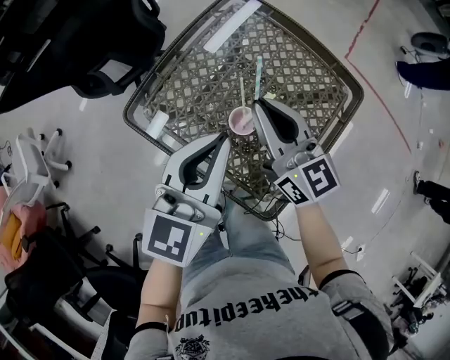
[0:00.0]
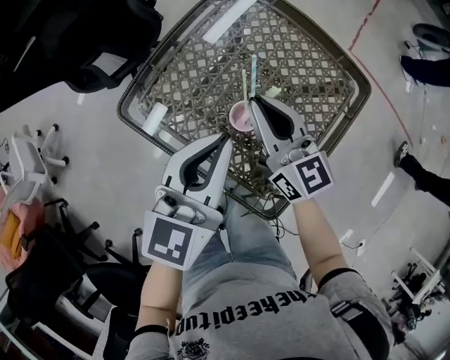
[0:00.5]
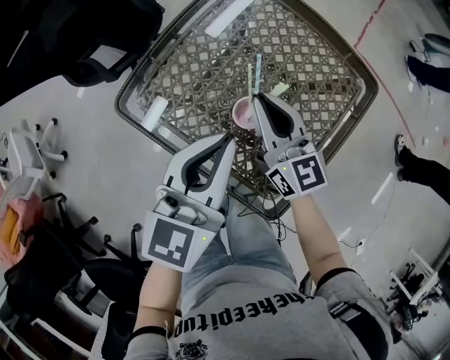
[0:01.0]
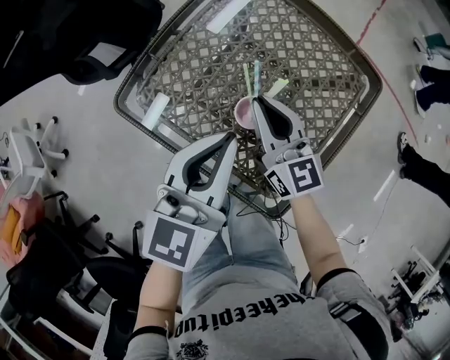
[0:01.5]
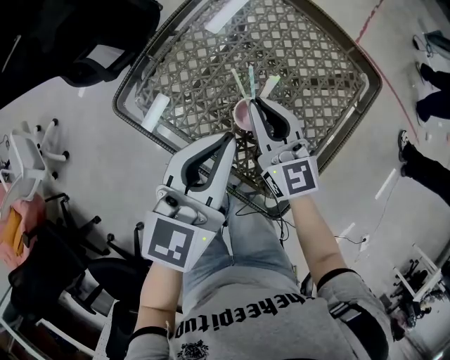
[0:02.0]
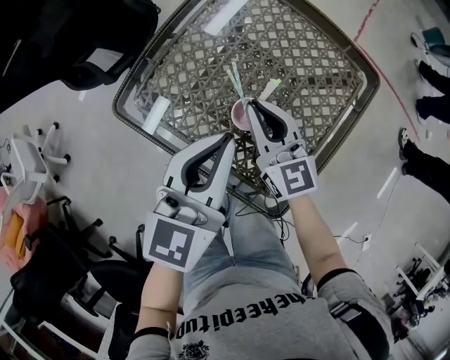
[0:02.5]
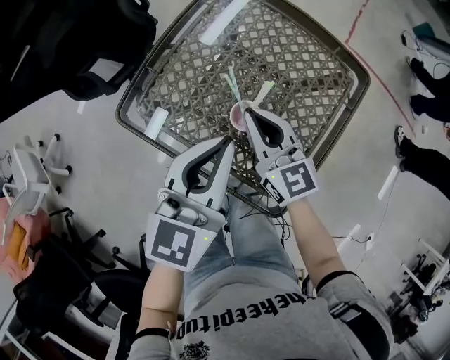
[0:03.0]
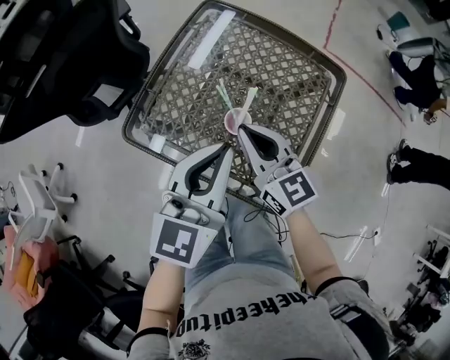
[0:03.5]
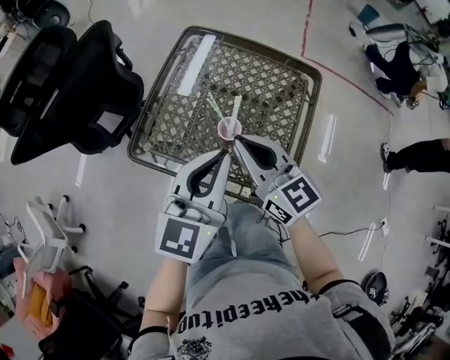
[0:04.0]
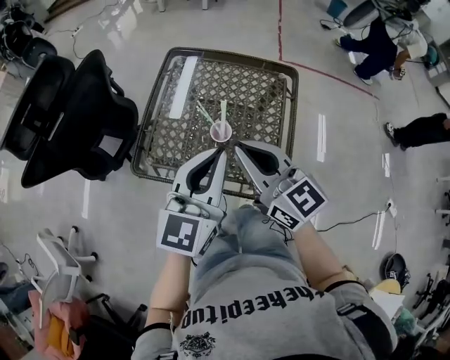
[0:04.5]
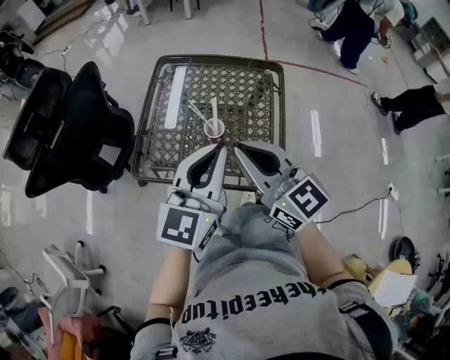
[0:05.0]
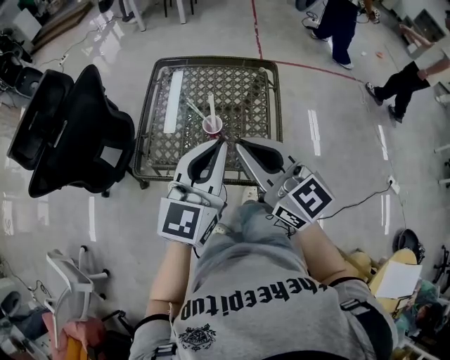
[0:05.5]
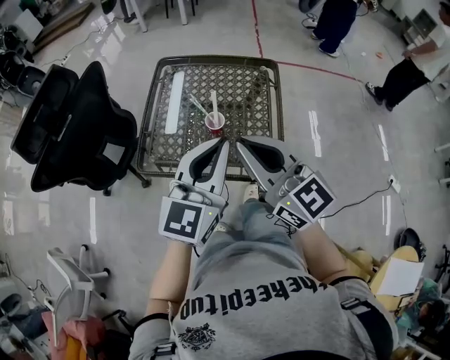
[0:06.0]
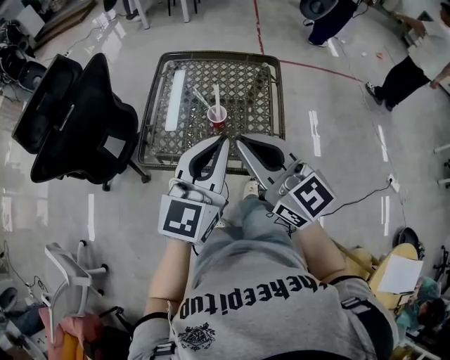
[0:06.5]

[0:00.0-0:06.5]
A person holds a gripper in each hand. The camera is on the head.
0:00.0 to 0:02.0: The left gripper is displaced downward by some 5 cm, while the right gripper is displaced downward by roughly 10 cm.
0:02.0 to 0:04.5: The left gripper is displaced upward and to the right by some 15 cm, and swivels roughly 20 degrees. Meanwhile the right gripper heads upward, covering roughly 20 cm.
0:04.5 to 0:06.5: The grippers both shift backward and upward by roughly 10 cm.

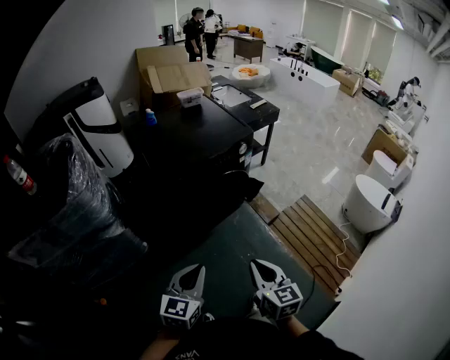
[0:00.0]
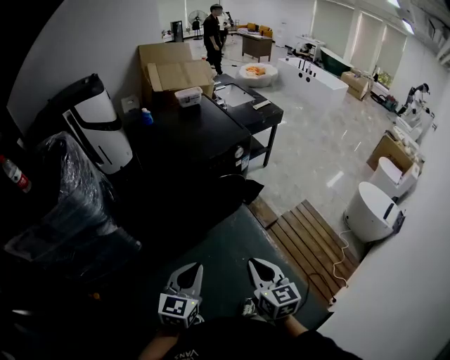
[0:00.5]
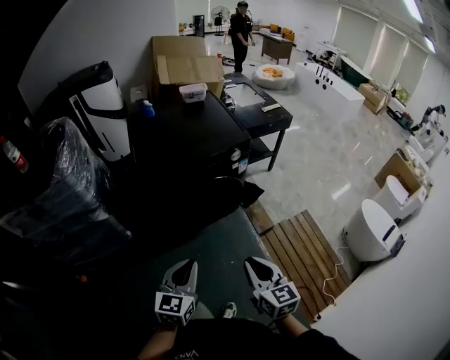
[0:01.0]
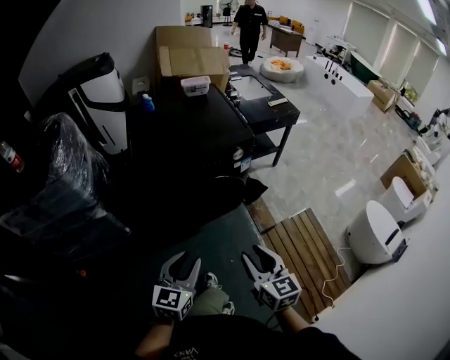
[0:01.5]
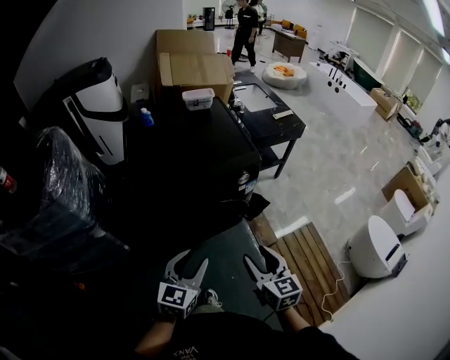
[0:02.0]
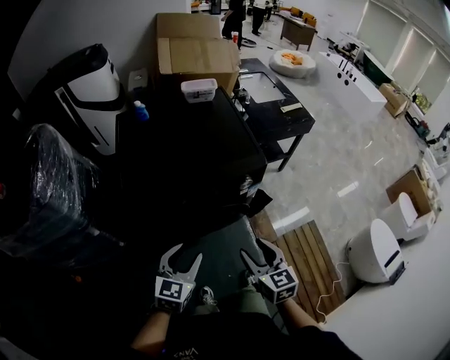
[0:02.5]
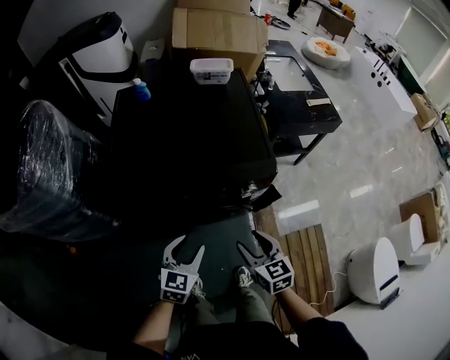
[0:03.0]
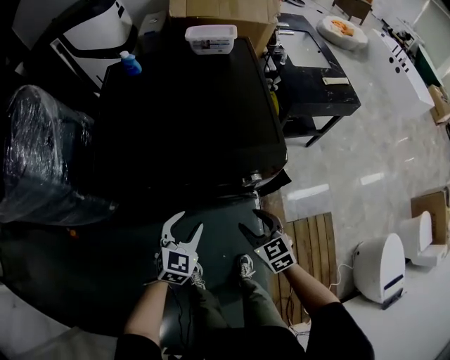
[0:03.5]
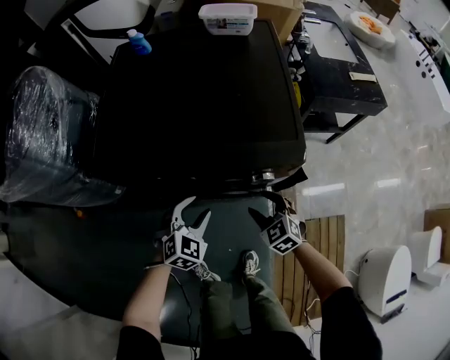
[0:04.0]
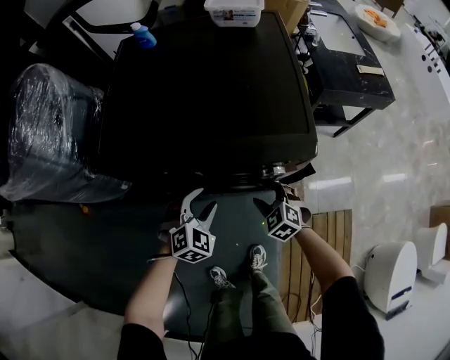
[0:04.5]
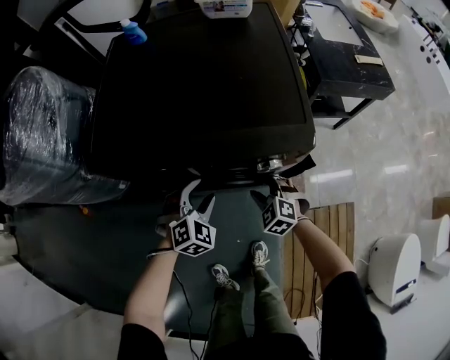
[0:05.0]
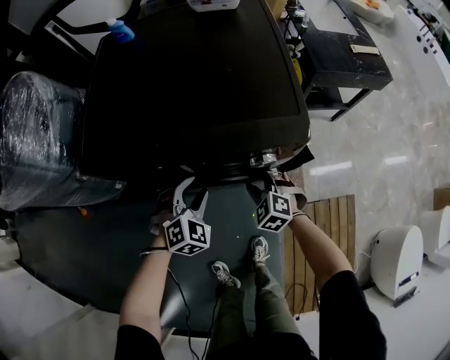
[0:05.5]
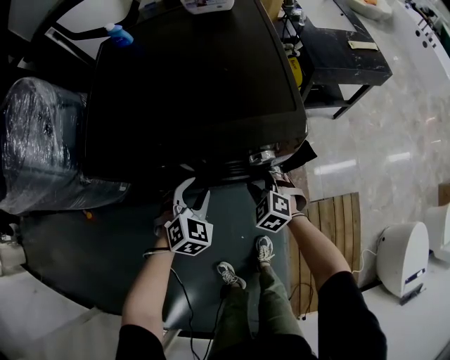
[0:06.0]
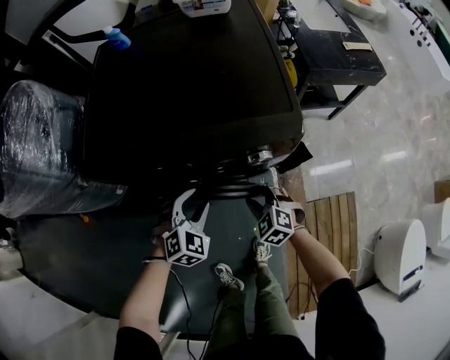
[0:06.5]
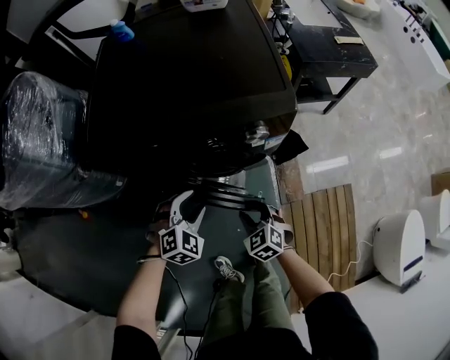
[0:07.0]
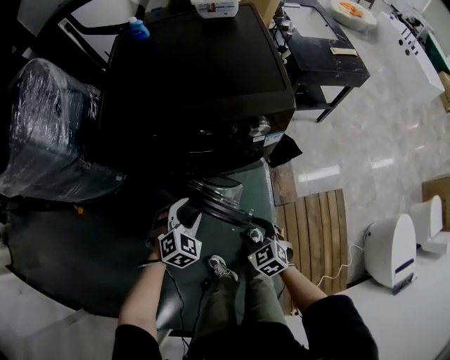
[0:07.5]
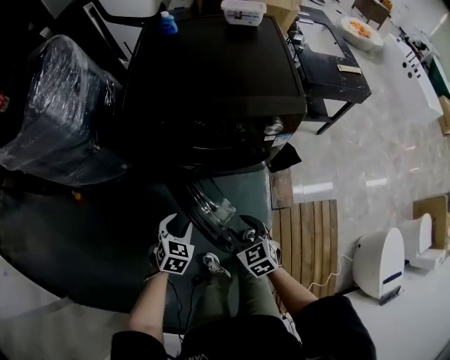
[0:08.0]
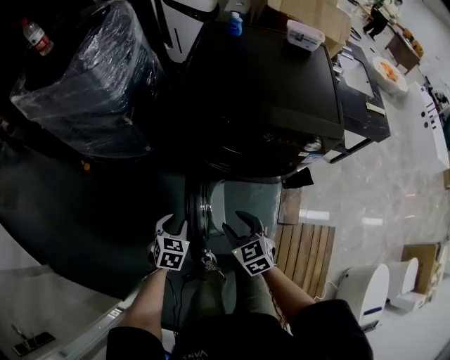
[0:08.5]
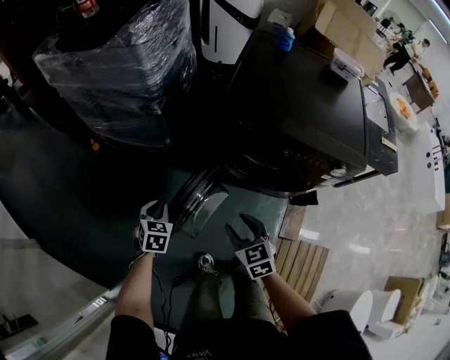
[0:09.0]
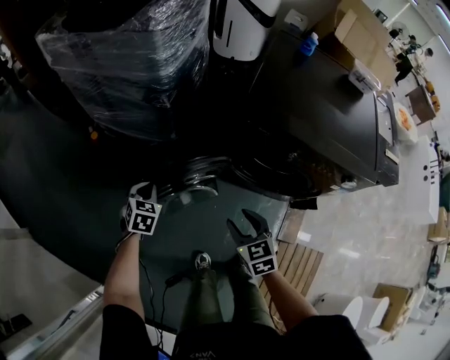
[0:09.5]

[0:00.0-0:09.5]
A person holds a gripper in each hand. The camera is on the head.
0:00.0 to 0:02.0: Both grippers move forward and to the right, approximately 30 cm. The left gripper opens; the right gripper opens up.
0:02.0 to 0:04.0: The right gripper ends up approximately 40 cm from where it was, and turns by about 60 degrees. The left gripper changes place by roughly 35 cm, and swivels roughly 40 degrees.
0:04.0 to 0:05.5: The right gripper is displaced downward by about 5 cm, and closes.
0:05.5 to 0:07.5: The left gripper shifts roughly 15 cm backward and to the left. The right gripper is displaced backward by some 25 cm, and swivels roughly 30 degrees.
0:07.5 to 0:09.5: The right gripper is displaced to the left by approximately 30 cm; the left gripper moves to the left, about 40 cm, rotates around the line of its fingers by approximately 50 degrees, counterclockwise from behind, and closes its fingers.

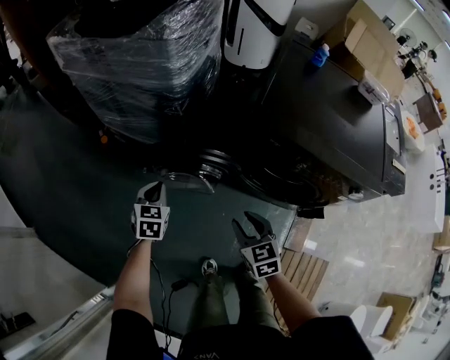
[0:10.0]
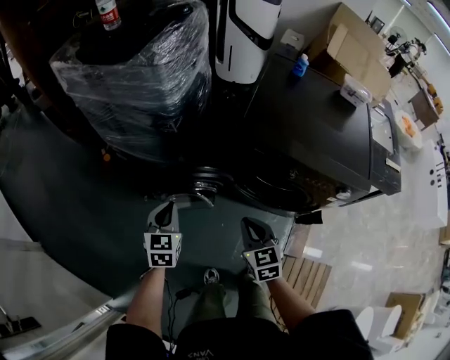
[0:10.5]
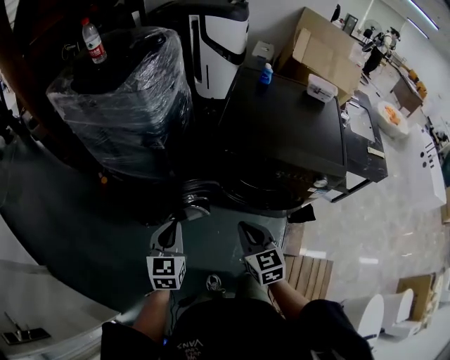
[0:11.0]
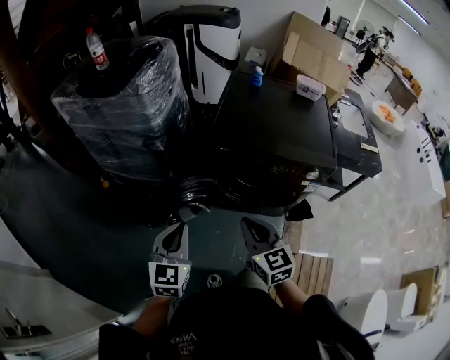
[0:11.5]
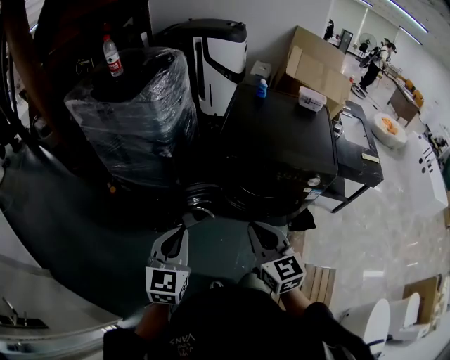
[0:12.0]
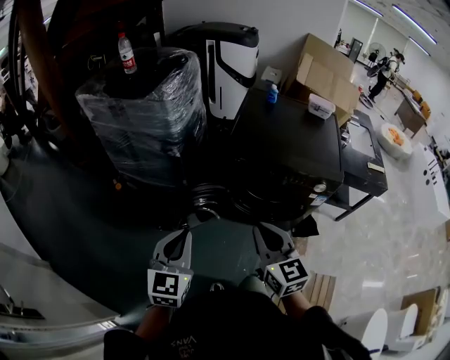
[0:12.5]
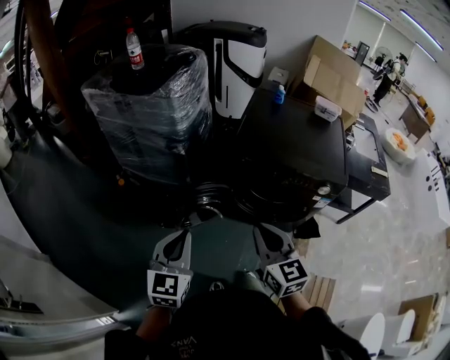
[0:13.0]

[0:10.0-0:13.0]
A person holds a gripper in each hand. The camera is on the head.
0:10.0 to 0:11.5: The left gripper heads upward, backward and to the right, covering approximately 35 cm, and swivels some 30 degrees; the right gripper goes roughly 25 cm upward and backward, rotates some 20 degrees, and closes up.
0:11.5 to 0:13.0: The left gripper shifts roughly 5 cm backward, while the right gripper heads upward, covering approximately 5 cm.

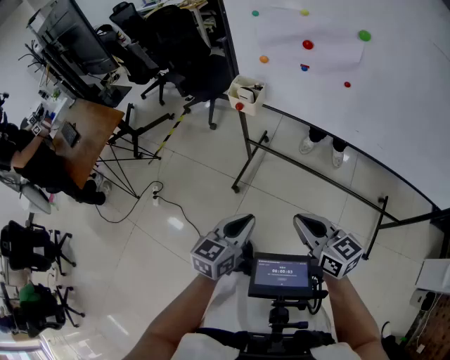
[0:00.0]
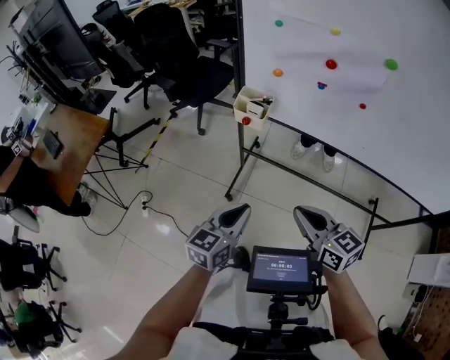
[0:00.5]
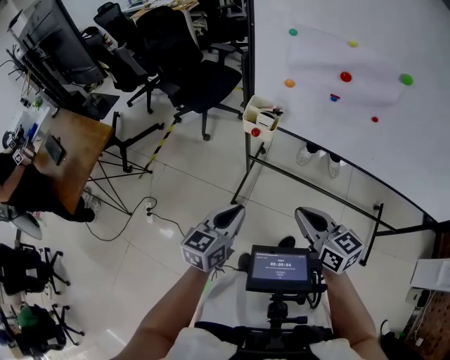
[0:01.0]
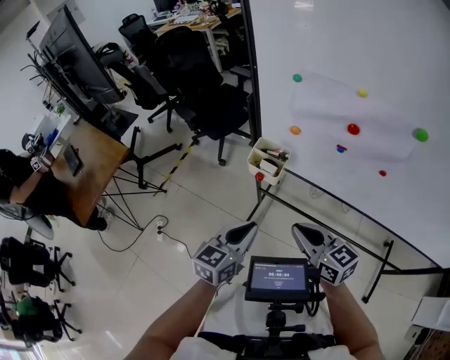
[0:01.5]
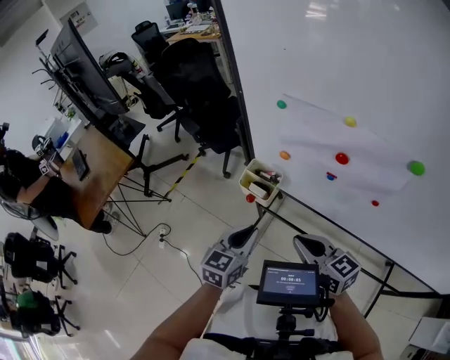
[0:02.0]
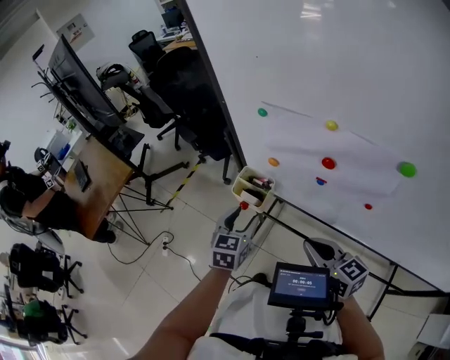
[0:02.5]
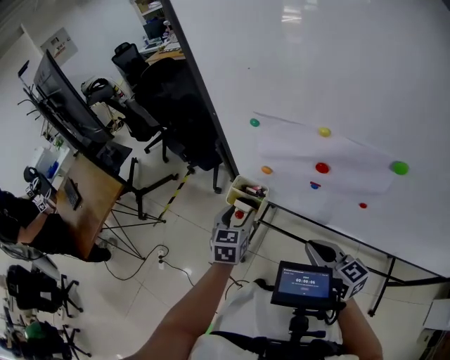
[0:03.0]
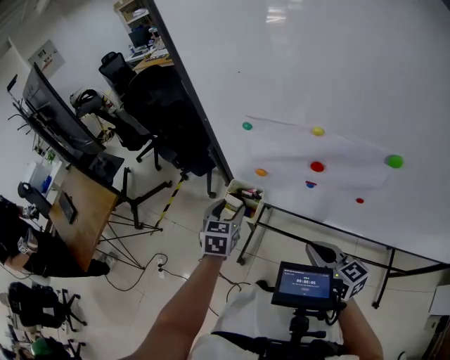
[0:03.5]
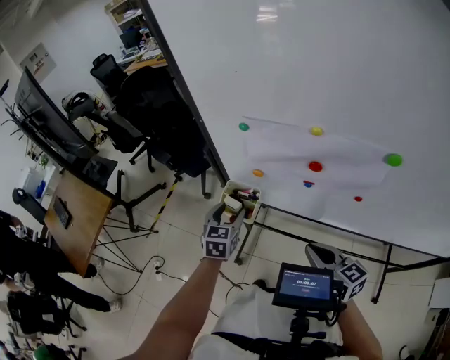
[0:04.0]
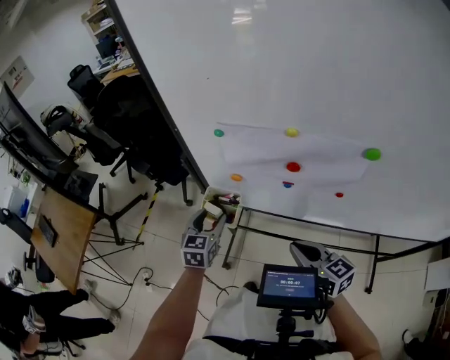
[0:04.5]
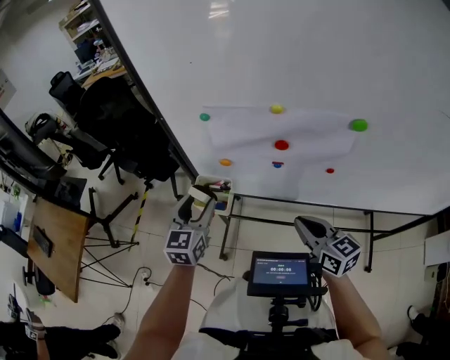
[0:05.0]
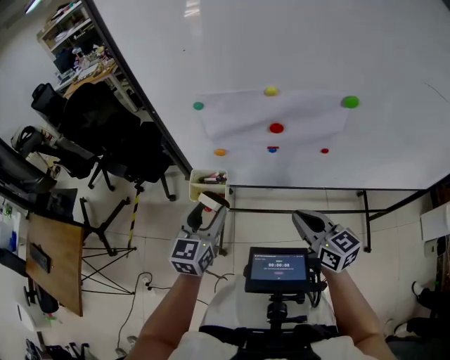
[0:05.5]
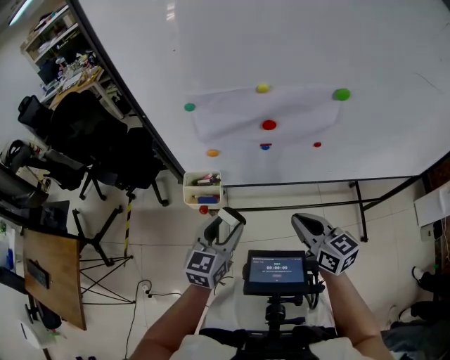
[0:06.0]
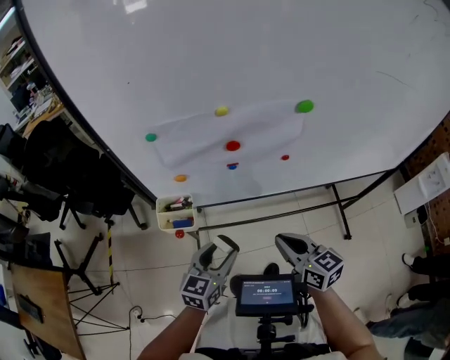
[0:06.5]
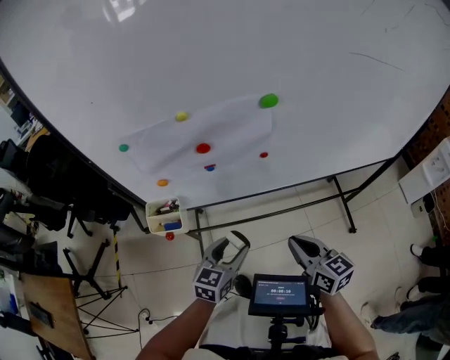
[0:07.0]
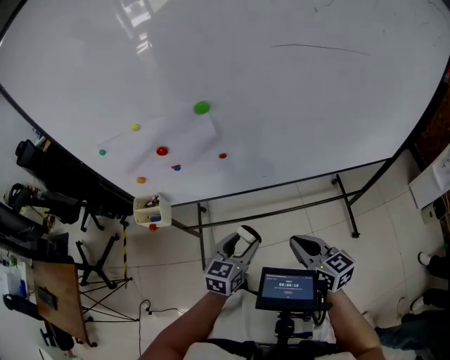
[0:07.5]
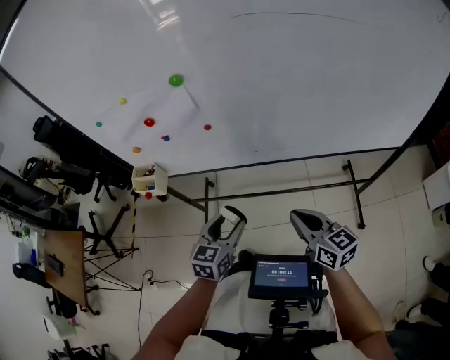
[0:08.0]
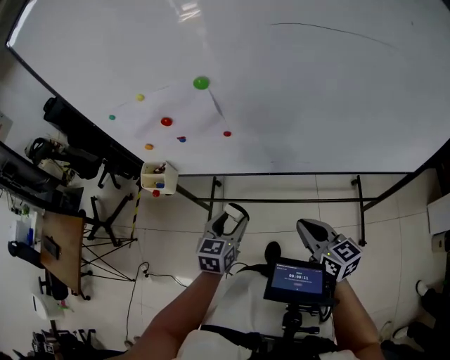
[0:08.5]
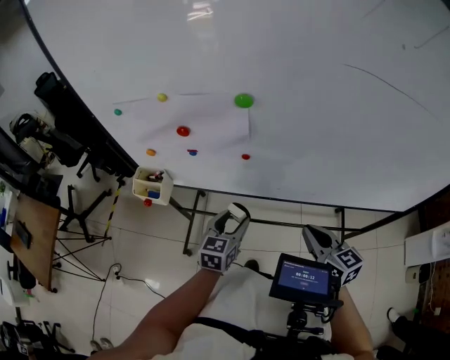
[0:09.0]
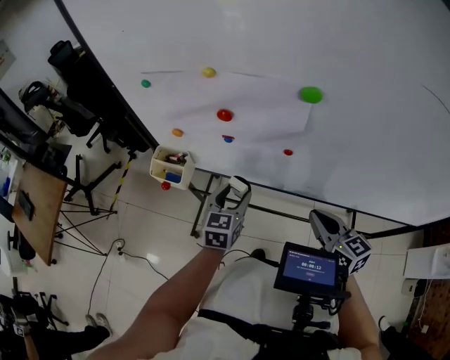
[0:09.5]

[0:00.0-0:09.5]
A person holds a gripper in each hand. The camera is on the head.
0:00.0 to 0:02.0: Both grippers move forward, about 35 cm.
0:02.0 to 0:04.0: The right gripper goes about 5 cm to the right, while the left gripper is displaced forward by about 15 cm, and opens up.
0:04.0 to 0:05.5: The left gripper shifts roughly 10 cm upward and backward, and rotates some 30 degrees.
0:05.5 to 0:07.5: The right gripper moves to the right and backward, about 30 cm, while the left gripper moves to the right, approximately 35 cm, and swivels roughly 30 degrees.
0:07.5 to 0:09.5: The left gripper travels forward and to the left by approximately 20 cm, and turns by roughly 30 degrees; the right gripper travels forward by about 15 cm.
